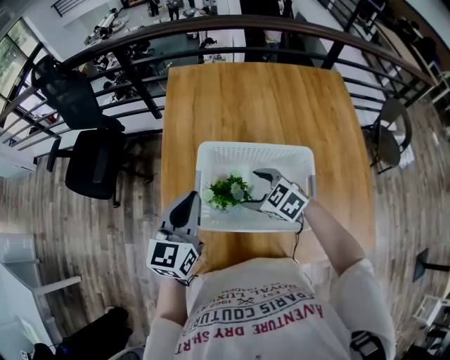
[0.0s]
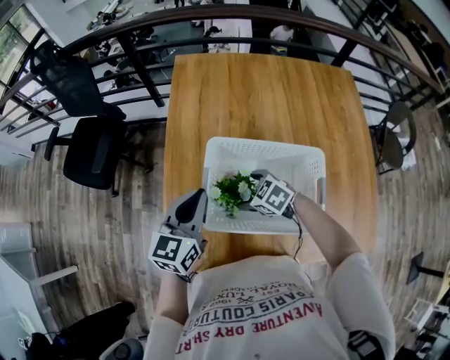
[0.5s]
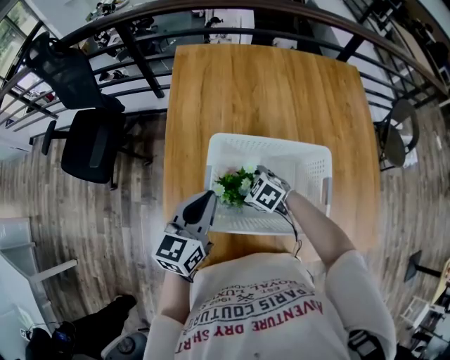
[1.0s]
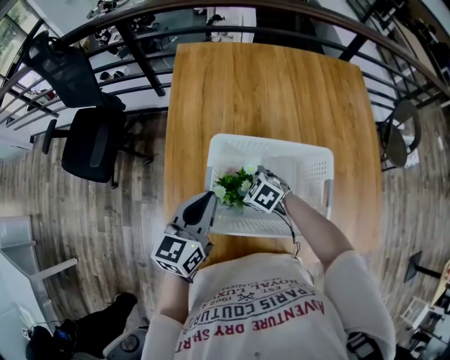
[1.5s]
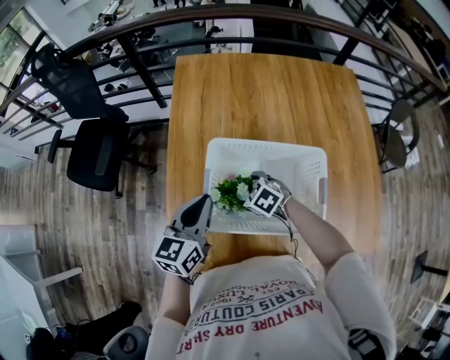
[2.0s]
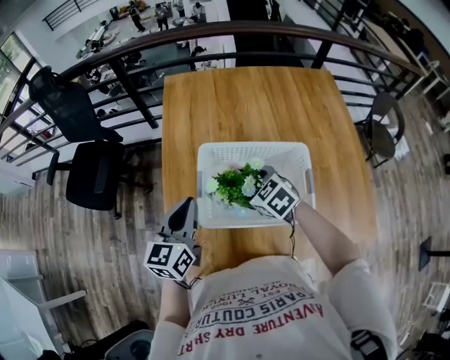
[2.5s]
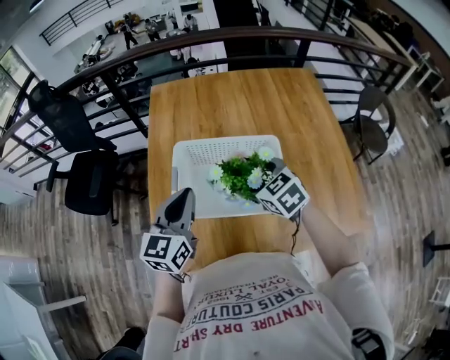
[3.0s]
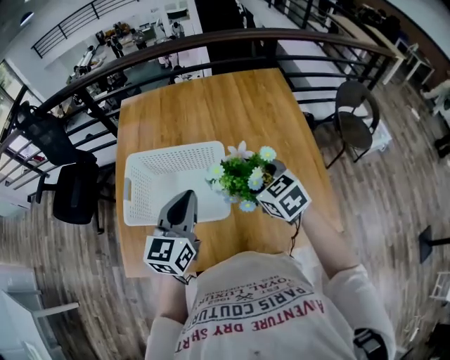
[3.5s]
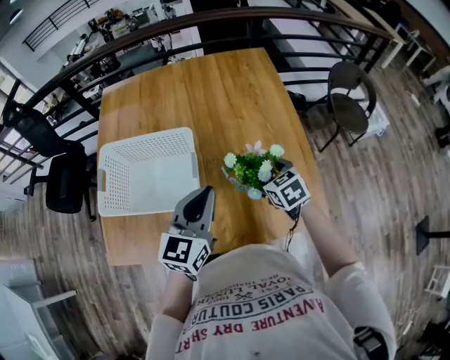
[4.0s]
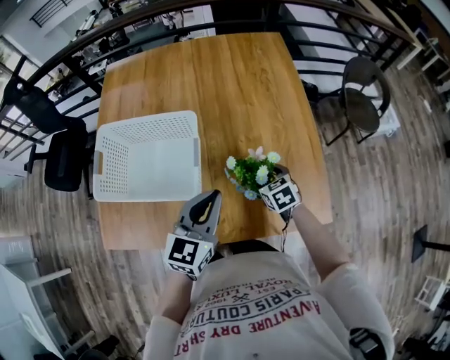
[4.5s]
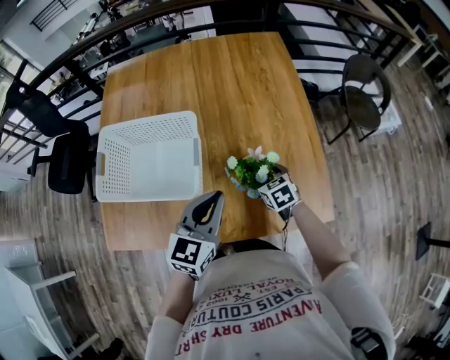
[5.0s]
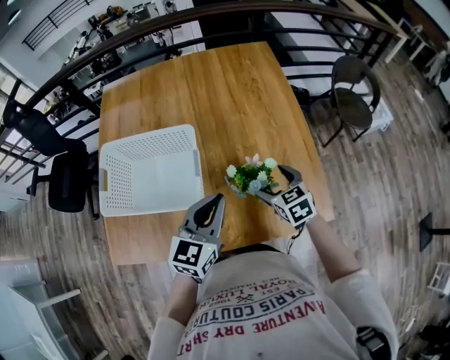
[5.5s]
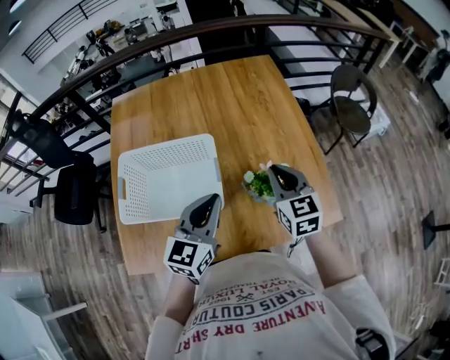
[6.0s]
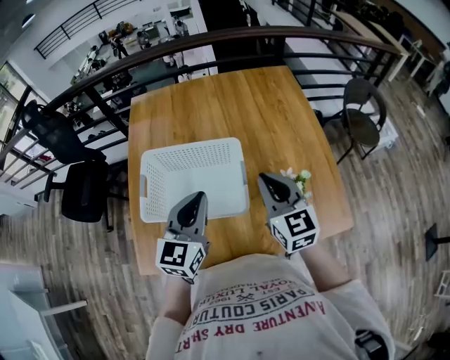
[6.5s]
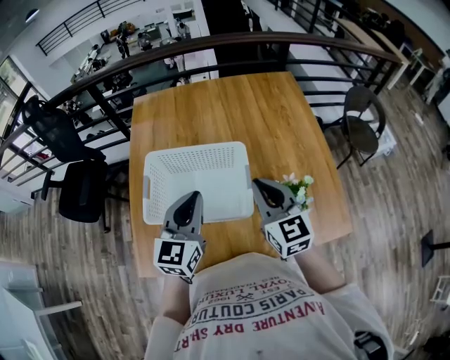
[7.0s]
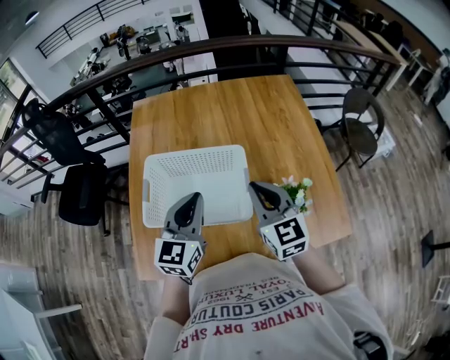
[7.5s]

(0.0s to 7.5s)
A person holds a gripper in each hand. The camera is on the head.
0.0s - 2.0s: The left gripper moves downward, about 5 cm. The right gripper travels downward by some 10 cm.
2.0s - 4.0s: The two grippers go about 40 cm to the right. The right gripper turns by approximately 40 degrees.
4.0s - 5.5s: The right gripper travels downward and back again, roughly 10 cm each way.
5.5s - 7.5s: The right gripper moves to the left and upward, some 30 cm, angles its fingers upward, by roughly 30 degrees, and closes its fingers; the left gripper is displaced to the left by approximately 20 cm.

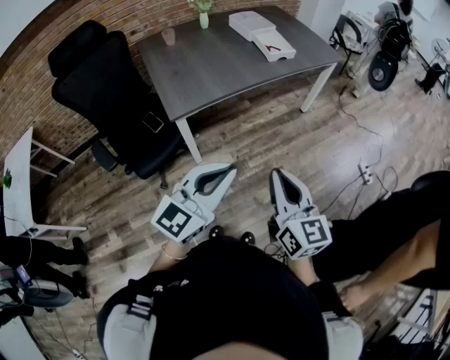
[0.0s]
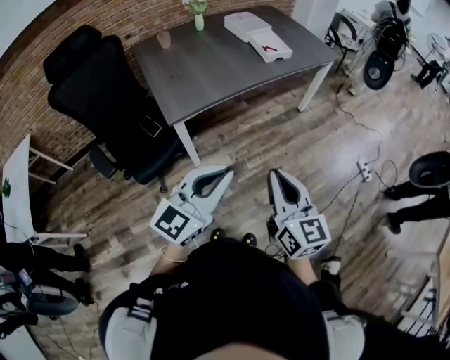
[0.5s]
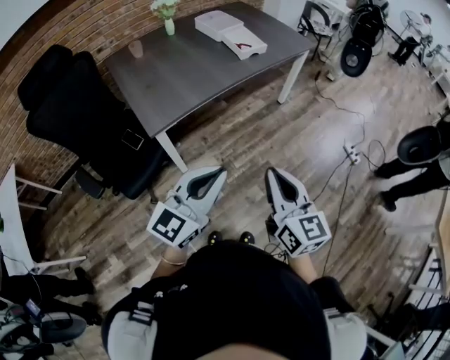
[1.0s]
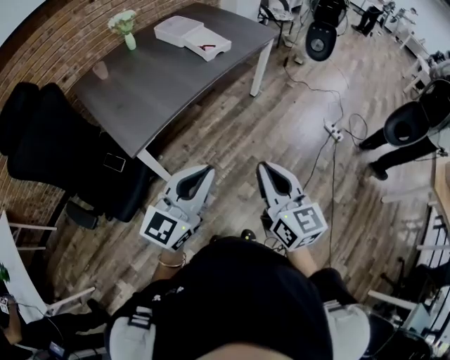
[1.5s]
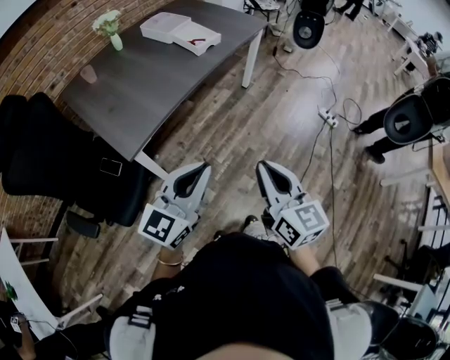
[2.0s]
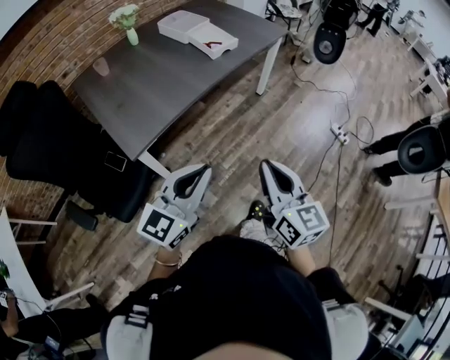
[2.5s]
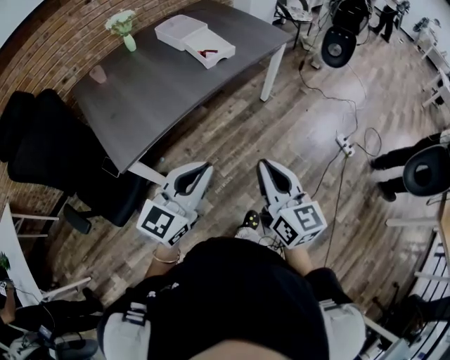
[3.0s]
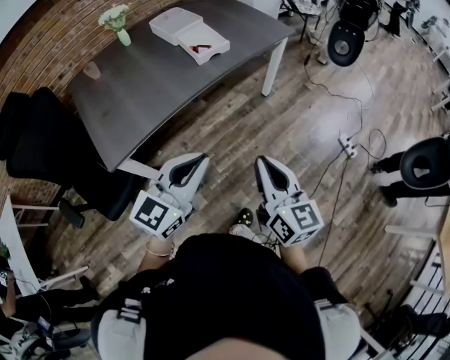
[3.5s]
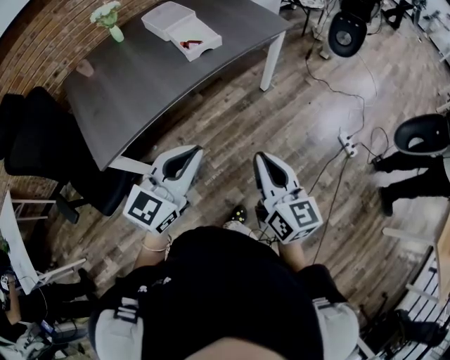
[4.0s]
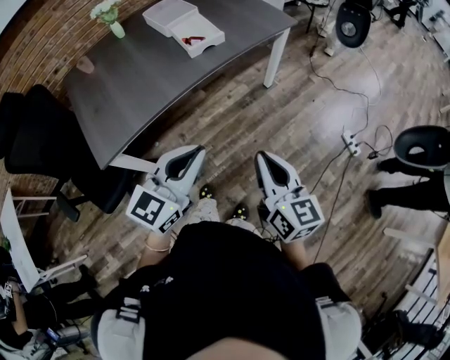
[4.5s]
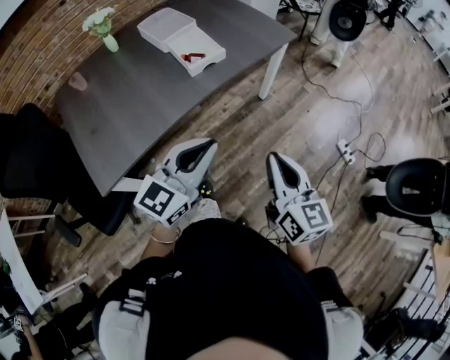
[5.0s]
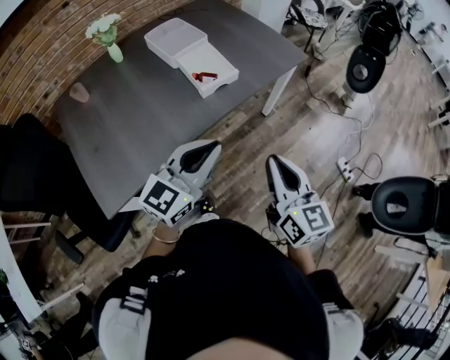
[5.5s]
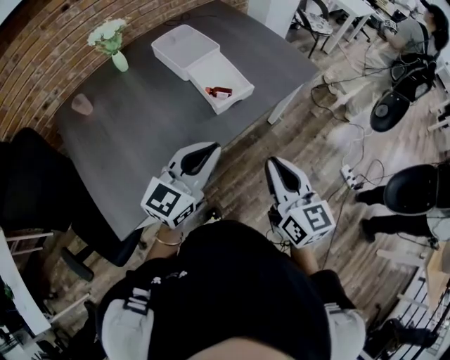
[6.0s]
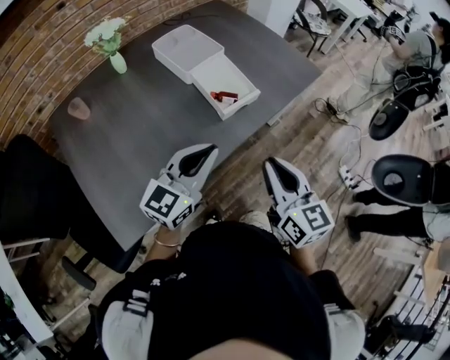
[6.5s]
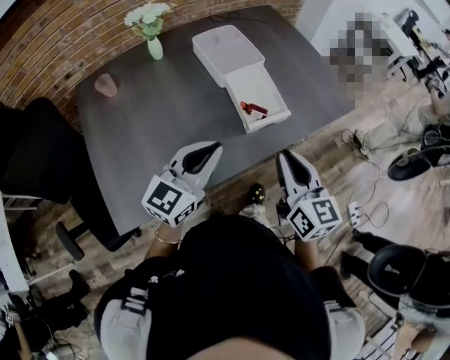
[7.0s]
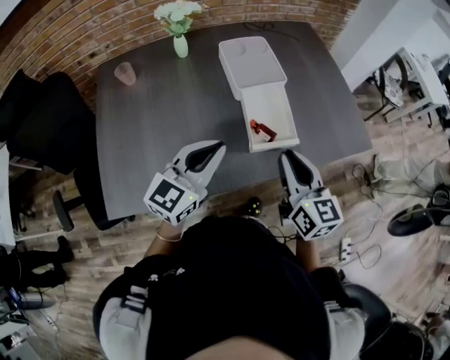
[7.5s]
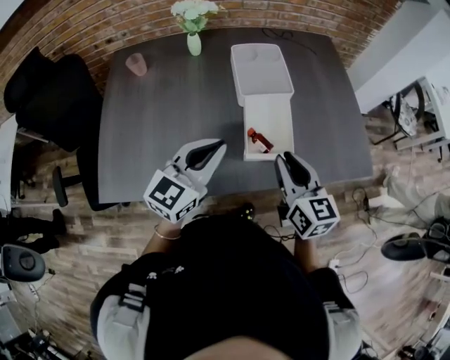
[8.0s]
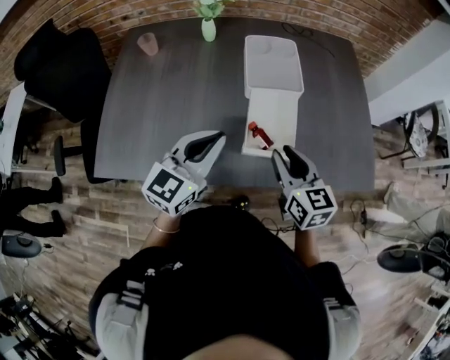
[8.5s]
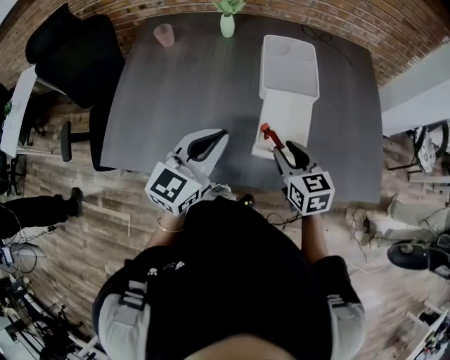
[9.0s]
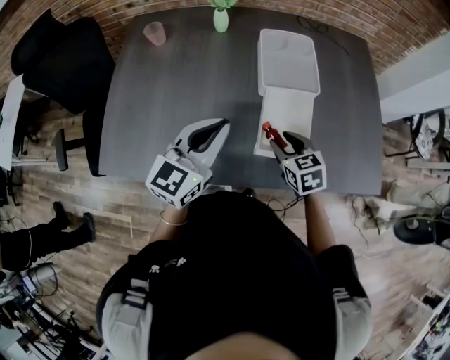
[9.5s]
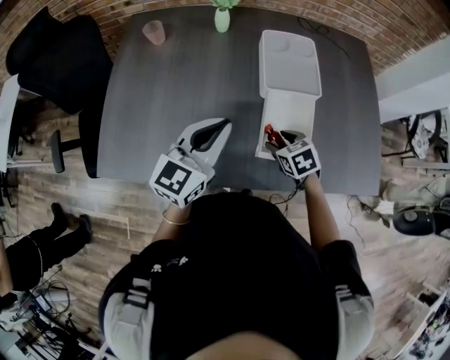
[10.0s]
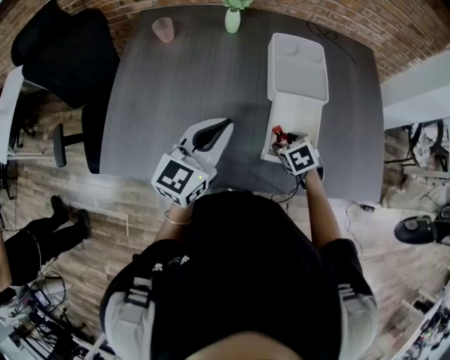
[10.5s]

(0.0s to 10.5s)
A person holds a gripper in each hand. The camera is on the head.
0.0s - 2.0s: The left gripper moves forward, about 5 cm.
2.0s - 4.0s: Both grippers move forward and to the right, about 30 cm.
4.0s - 6.5s: The grippers both shift forward and to the left by about 35 cm.
6.5s - 8.5s: The left gripper shifts by roughly 15 cm, and rotates some 40 degrees. The right gripper moves approximately 25 cm, and rotates roughly 40 degrees.
8.5s - 10.5s: The left gripper goes approximately 10 cm to the left and forward. The right gripper is displaced downward and forward by roughly 20 cm, tips its fingers downward by about 40 degrees, and opens.

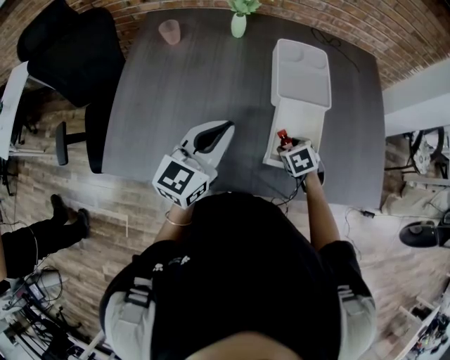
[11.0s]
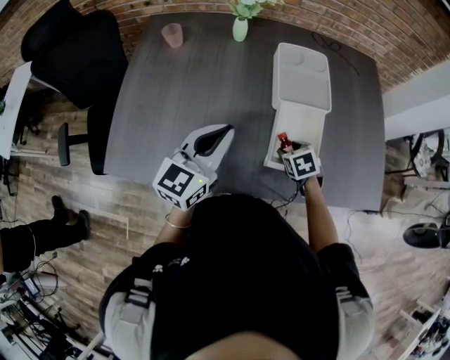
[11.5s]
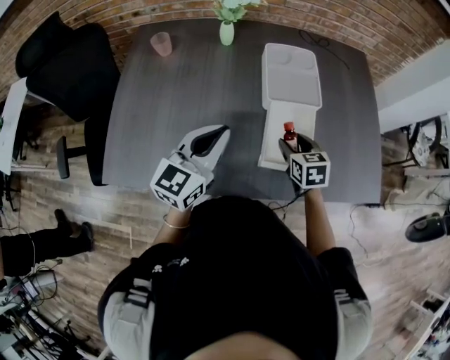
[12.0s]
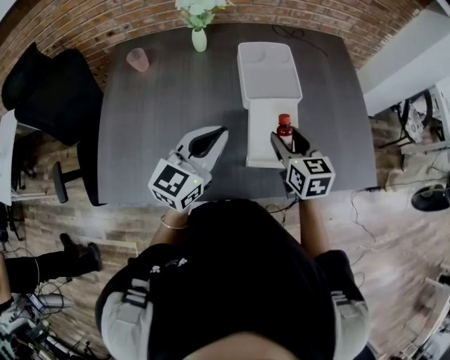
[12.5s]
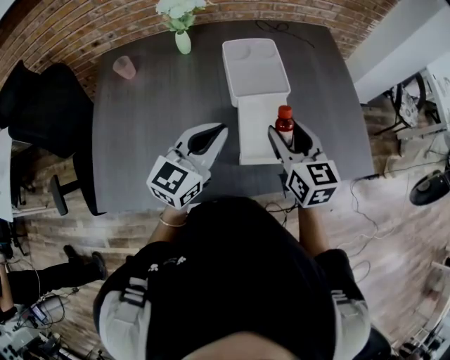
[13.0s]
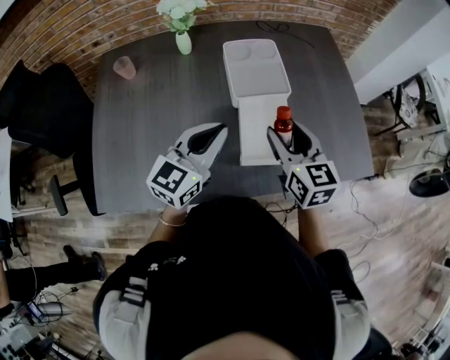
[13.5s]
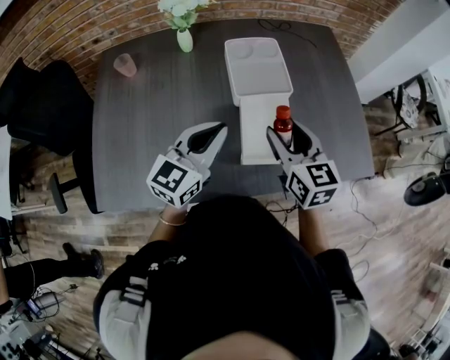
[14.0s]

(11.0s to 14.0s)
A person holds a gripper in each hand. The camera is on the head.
11.0s - 12.5s: The left gripper travels to the right by roughly 5 cm. Meanwhile the right gripper heads upward, covering about 15 cm, and angles its fingers upward, by about 40 degrees.
12.5s - 14.0s: The right gripper moves upward, roughly 5 cm.

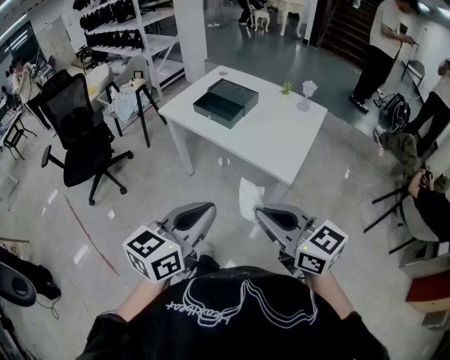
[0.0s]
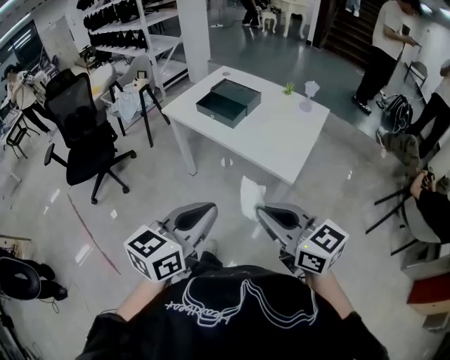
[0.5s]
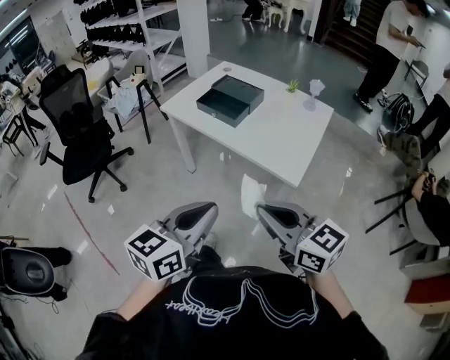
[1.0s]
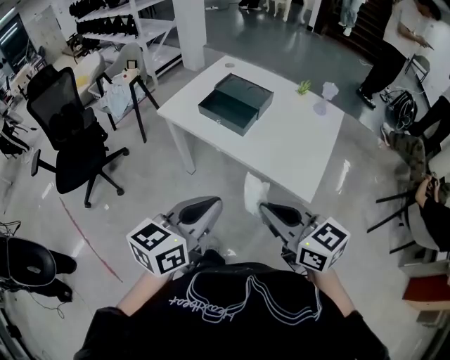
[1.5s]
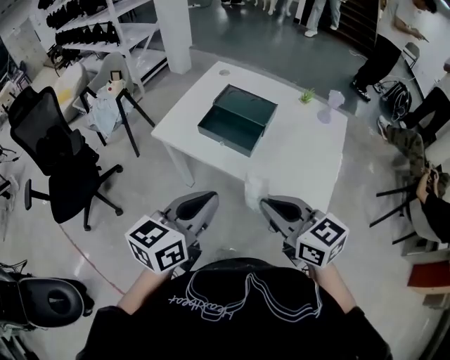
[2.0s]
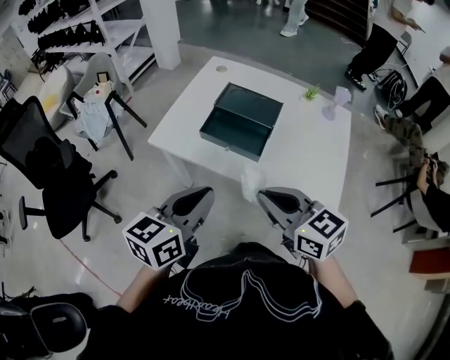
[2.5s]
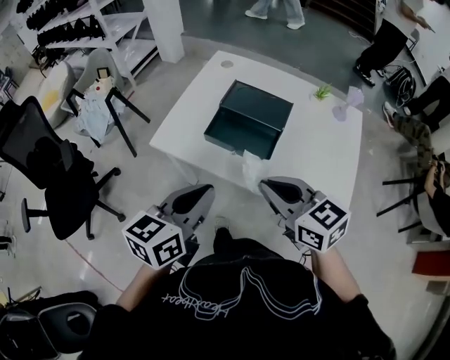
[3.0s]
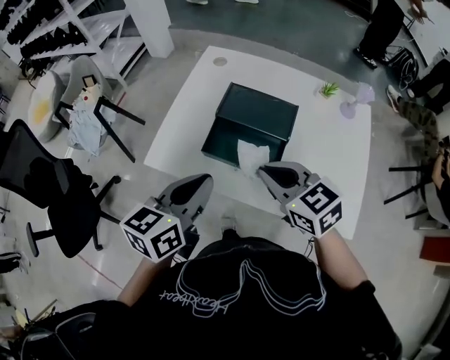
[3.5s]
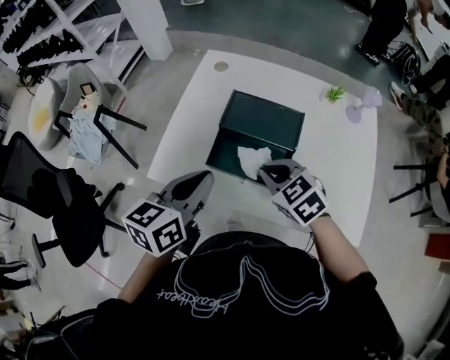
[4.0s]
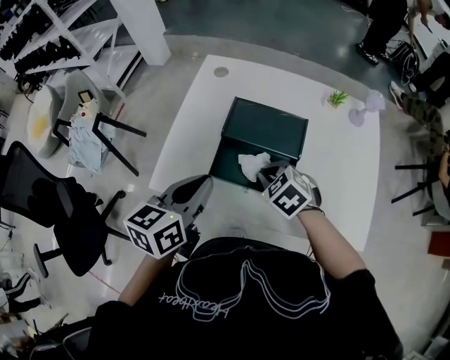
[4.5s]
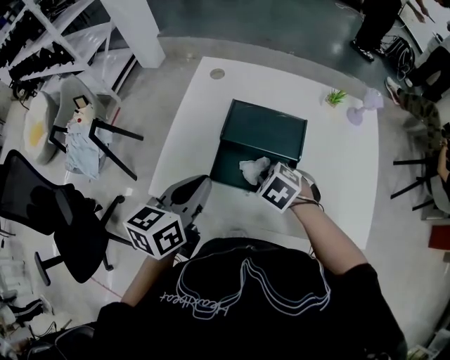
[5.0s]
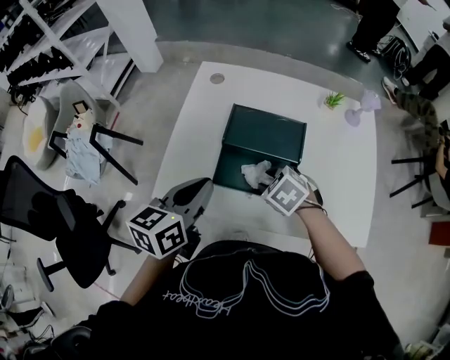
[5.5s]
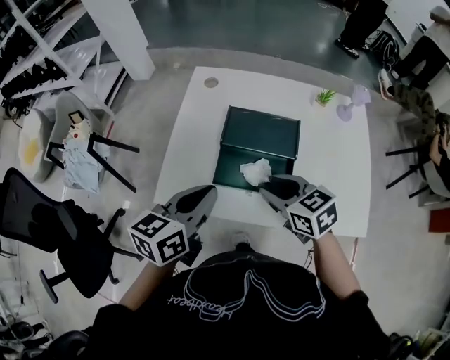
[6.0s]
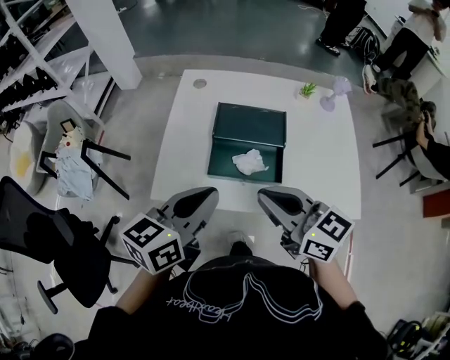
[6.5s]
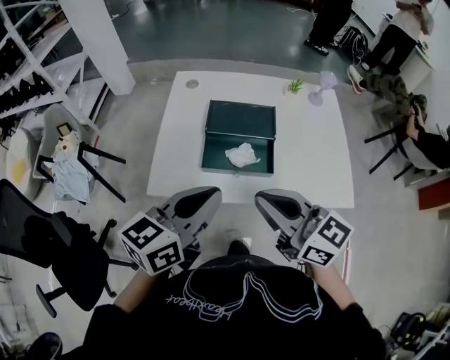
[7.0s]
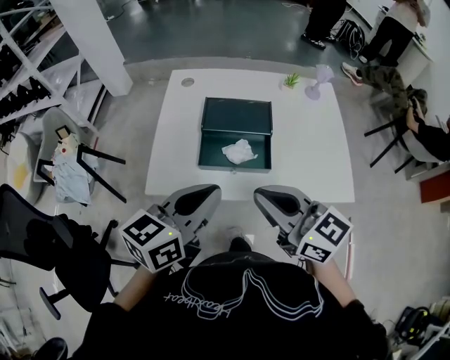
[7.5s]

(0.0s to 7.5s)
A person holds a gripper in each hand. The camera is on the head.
0.0s - 2.0s: Both grippers move forward, about 25 cm.
2.0s - 4.0s: The right gripper goes some 30 cm forward and downward, and turns by approximately 30 degrees; the left gripper travels forward by roughly 25 cm.
4.0s - 5.5s: The right gripper moves downward, some 10 cm, rotates about 20 degrees, and opens up.
5.5s - 7.5s: The right gripper travels upward and backward by some 30 cm, tilts its fingers about 60 degrees upward, and closes, while the left gripper heads backward and upward, covering some 15 cm, and turns by about 20 degrees.
